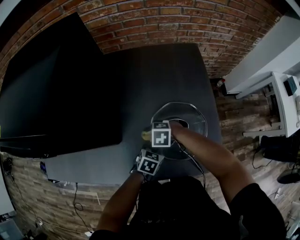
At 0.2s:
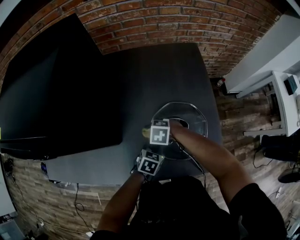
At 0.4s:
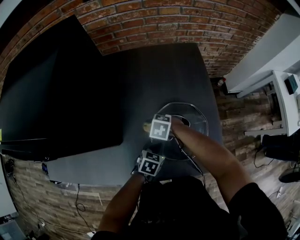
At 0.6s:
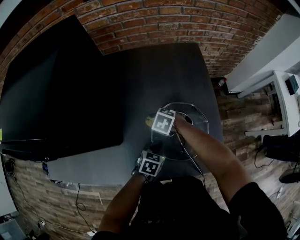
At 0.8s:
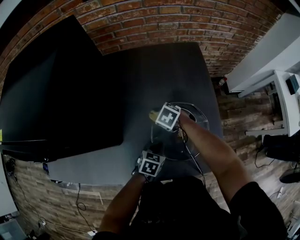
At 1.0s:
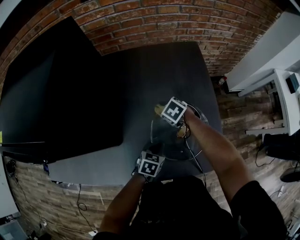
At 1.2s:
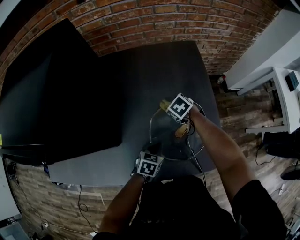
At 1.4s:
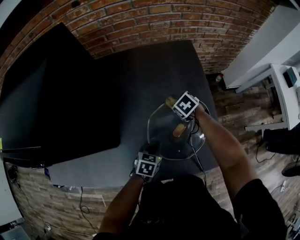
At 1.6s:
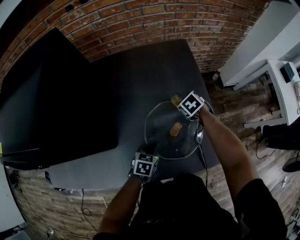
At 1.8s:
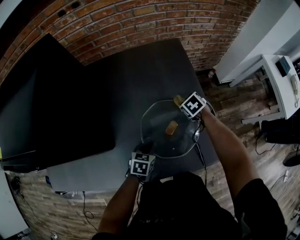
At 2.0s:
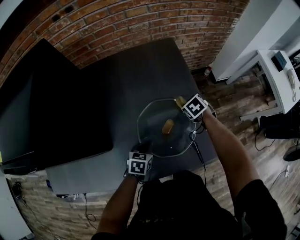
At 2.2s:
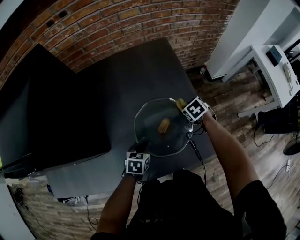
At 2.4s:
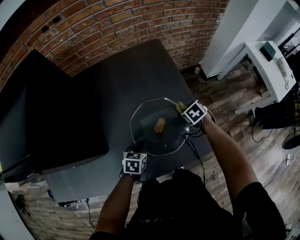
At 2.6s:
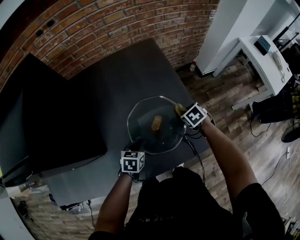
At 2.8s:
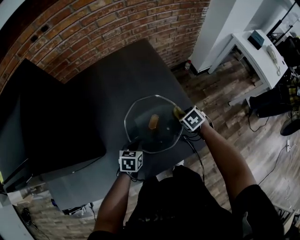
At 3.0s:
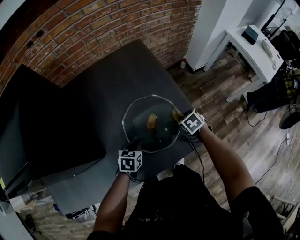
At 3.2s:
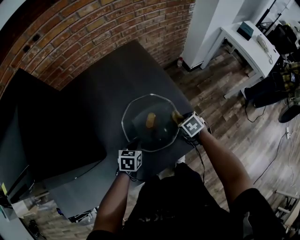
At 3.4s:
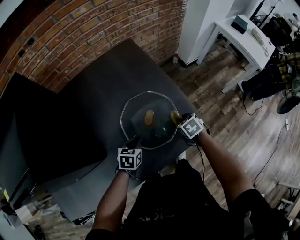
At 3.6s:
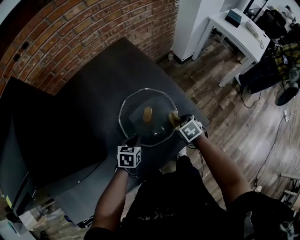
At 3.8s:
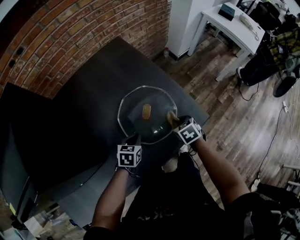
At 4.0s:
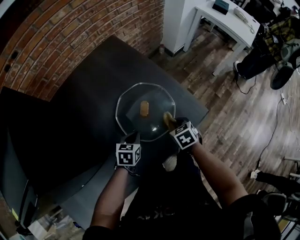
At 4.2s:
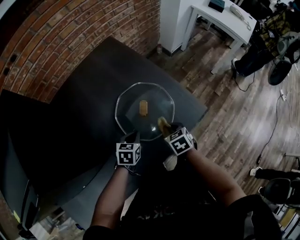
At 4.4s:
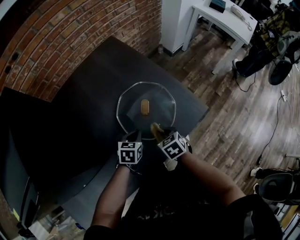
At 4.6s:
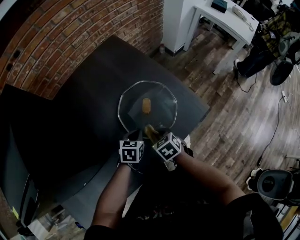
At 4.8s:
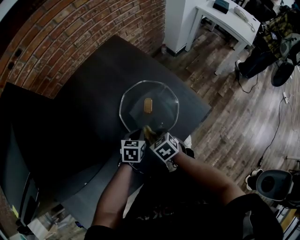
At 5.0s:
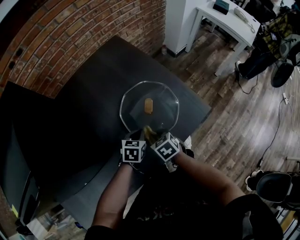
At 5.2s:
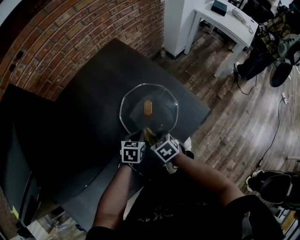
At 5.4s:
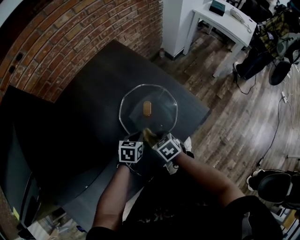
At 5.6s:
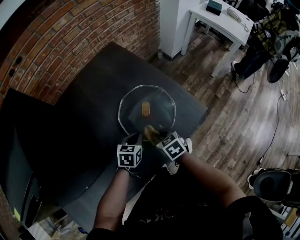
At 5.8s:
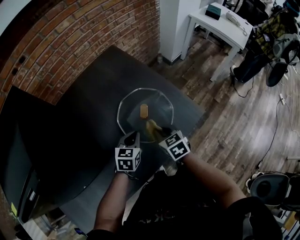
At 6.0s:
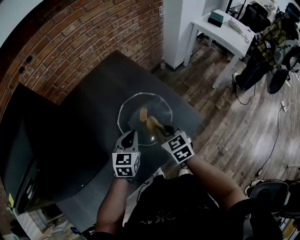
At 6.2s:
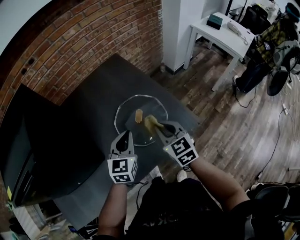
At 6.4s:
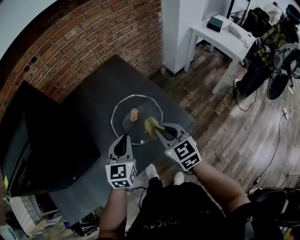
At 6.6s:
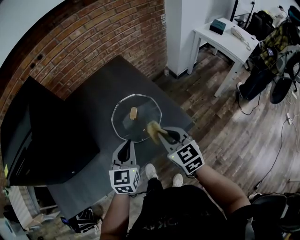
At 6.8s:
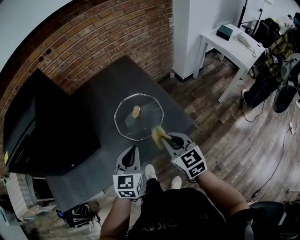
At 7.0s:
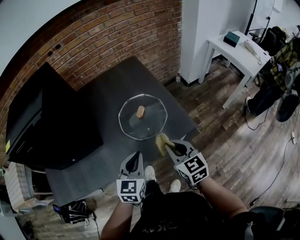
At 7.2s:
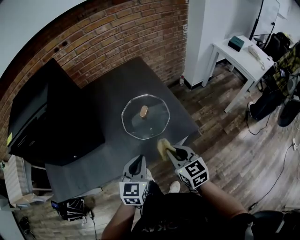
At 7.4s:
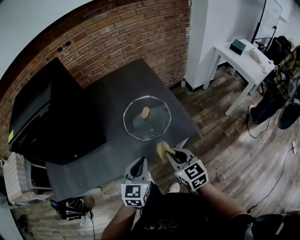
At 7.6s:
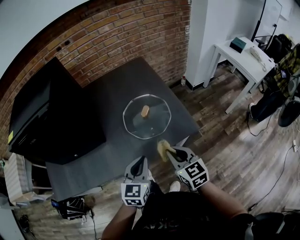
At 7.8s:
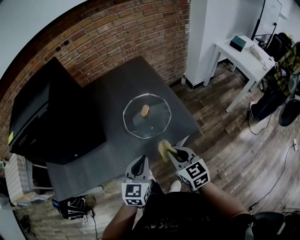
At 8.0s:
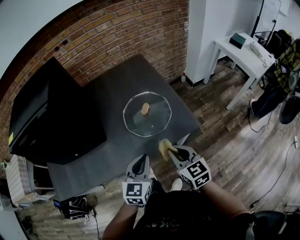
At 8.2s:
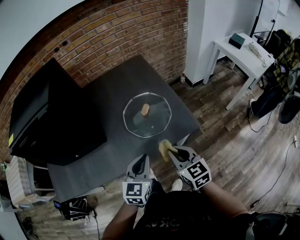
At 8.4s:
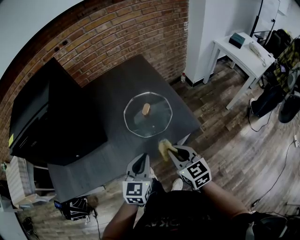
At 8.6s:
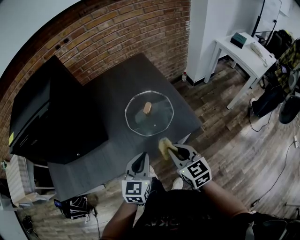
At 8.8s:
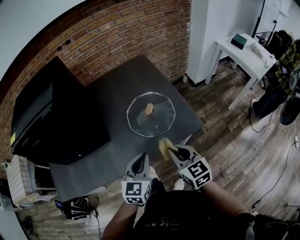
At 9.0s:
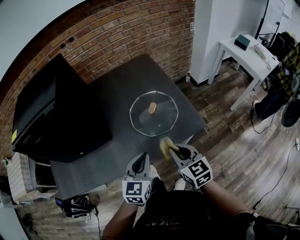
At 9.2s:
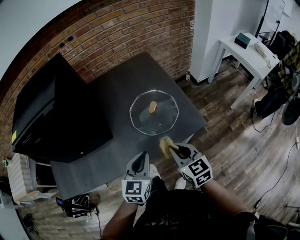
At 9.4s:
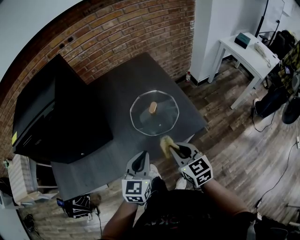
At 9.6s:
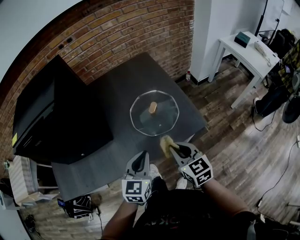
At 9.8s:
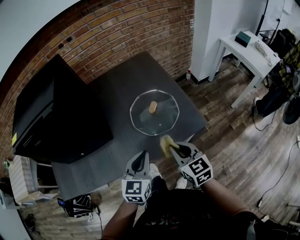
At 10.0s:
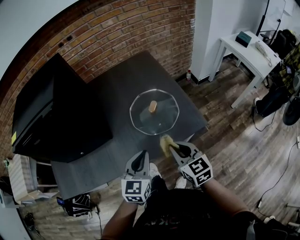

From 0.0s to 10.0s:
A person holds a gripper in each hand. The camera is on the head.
From 0.0s to 1.4s: The right gripper changes place by roughly 20 cm, and rotates around the line of its fingers by roughly 40 degrees, clockwise from behind.
From 1.4s to 2.8s: The right gripper is displaced to the right and backward by roughly 20 cm, and changes its angle by about 20 degrees.
From 2.8s to 4.2s: The right gripper moves backward and to the left, some 15 cm, and swivels approximately 30 degrees.
From 4.2s to 5.8s: The left gripper moves upward, some 5 cm, while the right gripper goes about 10 cm upward and to the left.
From 5.8s to 7.2s: The left gripper travels backward and upward by approximately 25 cm, and changes its angle by approximately 30 degrees. The right gripper shifts approximately 25 cm backward, upward and to the right, and turns by about 20 degrees.
From 7.2s to 10.0s: The grippers move only a little.

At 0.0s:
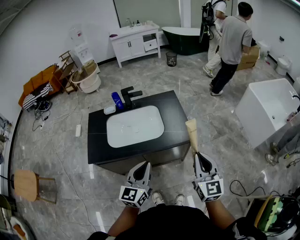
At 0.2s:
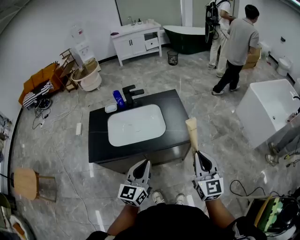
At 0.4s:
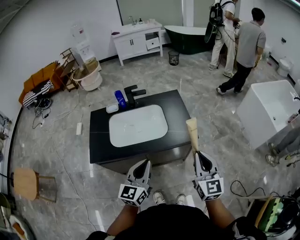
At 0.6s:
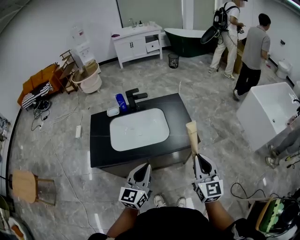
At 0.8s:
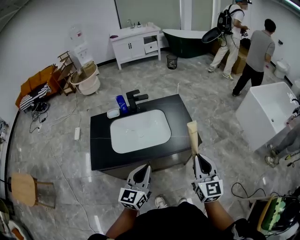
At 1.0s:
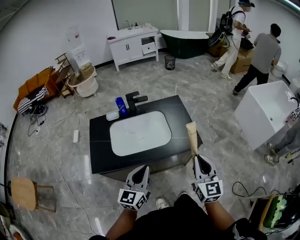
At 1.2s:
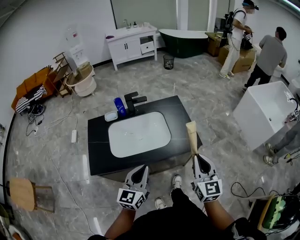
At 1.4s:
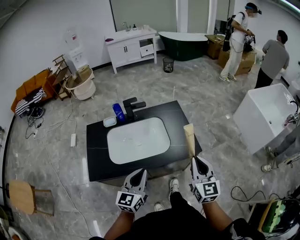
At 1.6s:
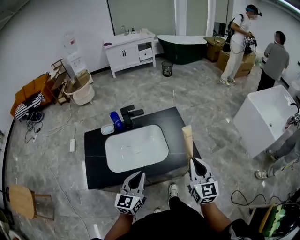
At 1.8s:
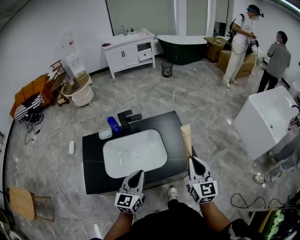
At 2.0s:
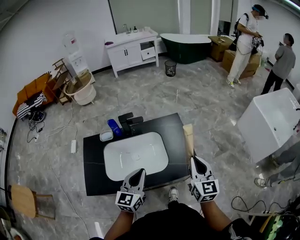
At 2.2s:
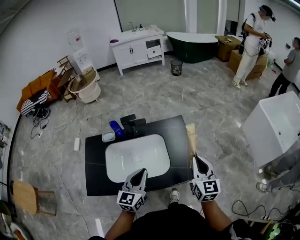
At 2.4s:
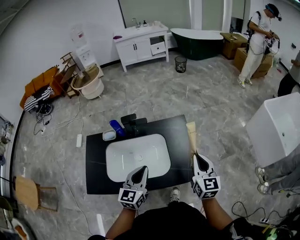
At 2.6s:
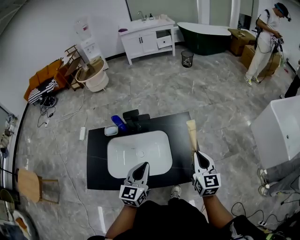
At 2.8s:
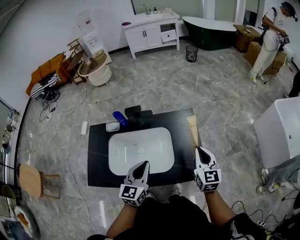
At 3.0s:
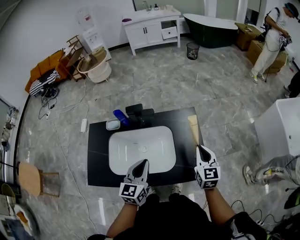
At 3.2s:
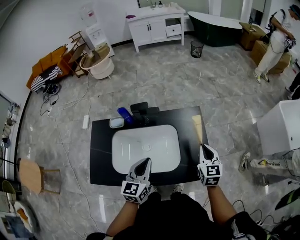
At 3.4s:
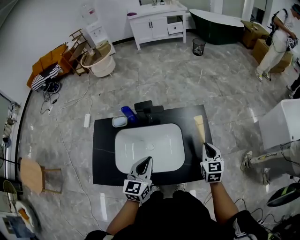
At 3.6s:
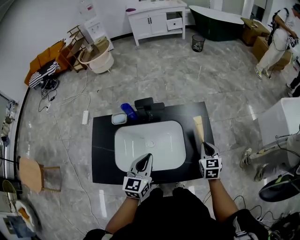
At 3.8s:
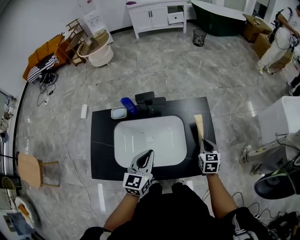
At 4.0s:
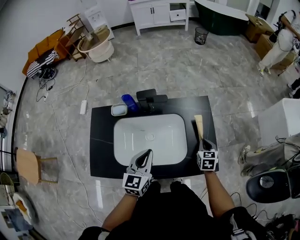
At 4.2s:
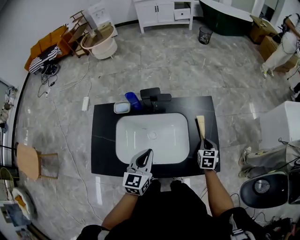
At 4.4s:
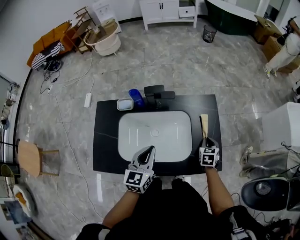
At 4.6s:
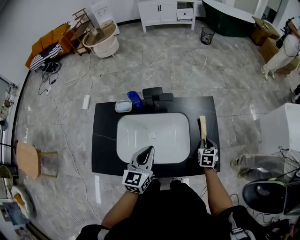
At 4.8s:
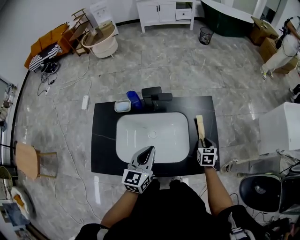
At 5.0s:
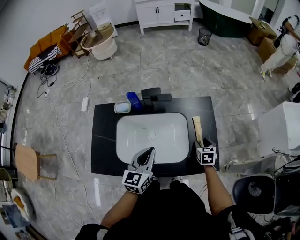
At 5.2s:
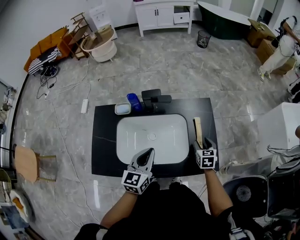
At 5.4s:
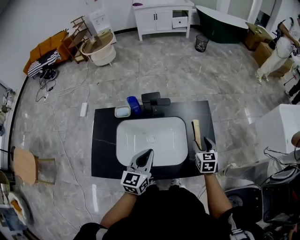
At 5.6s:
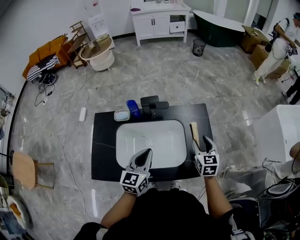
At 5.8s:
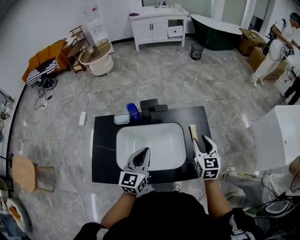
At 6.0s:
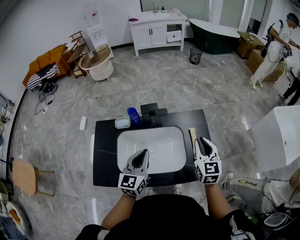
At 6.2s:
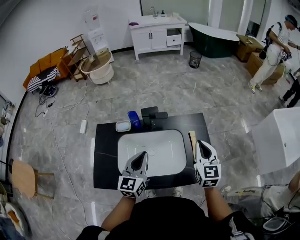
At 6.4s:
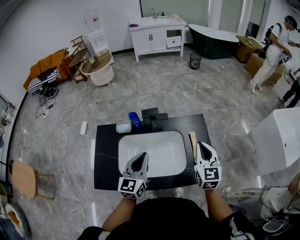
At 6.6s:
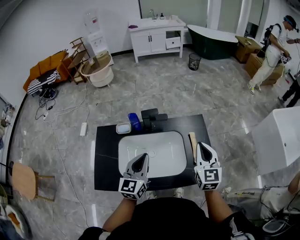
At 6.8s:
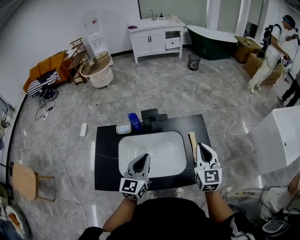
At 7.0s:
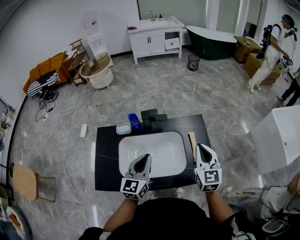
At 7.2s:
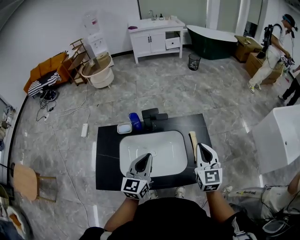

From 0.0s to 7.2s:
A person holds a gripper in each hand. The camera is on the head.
From 0.0s to 1.4s: The left gripper is displaced to the left and forward by about 10 cm. Meanwhile the right gripper moves forward and to the left, roughly 10 cm.
From 1.4s to 2.8s: Both grippers move forward, approximately 20 cm.
From 2.8s to 4.4s: The left gripper moves to the left and downward, some 10 cm. The right gripper shifts approximately 20 cm downward, and angles its fingers downward, by roughly 30 degrees.
From 4.4s to 5.8s: The right gripper goes roughly 20 cm upward, rotates approximately 30 degrees, and opens. The left gripper shifts roughly 5 cm upward.
From 5.8s to 7.2s: The right gripper heads upward, covering about 10 cm, and closes up.

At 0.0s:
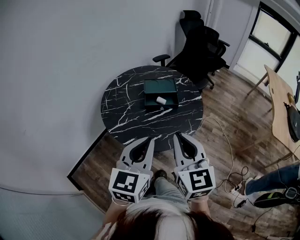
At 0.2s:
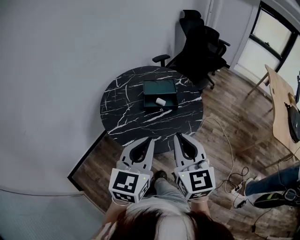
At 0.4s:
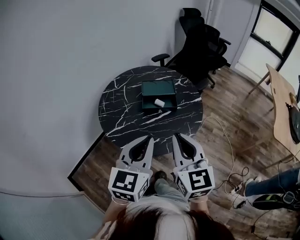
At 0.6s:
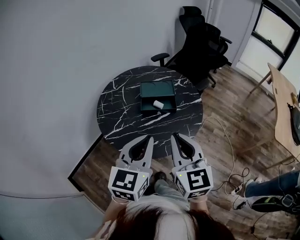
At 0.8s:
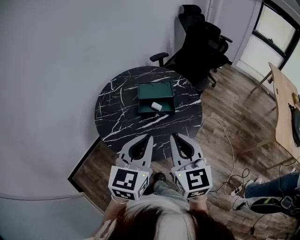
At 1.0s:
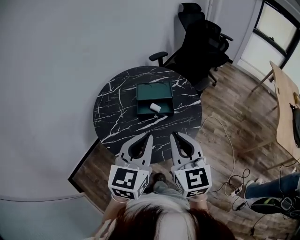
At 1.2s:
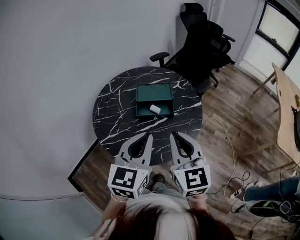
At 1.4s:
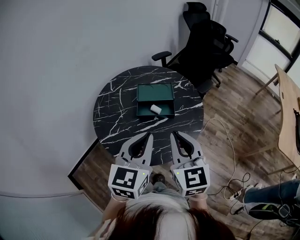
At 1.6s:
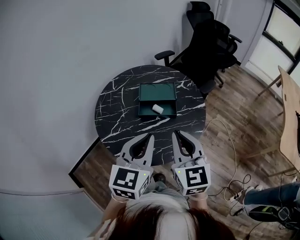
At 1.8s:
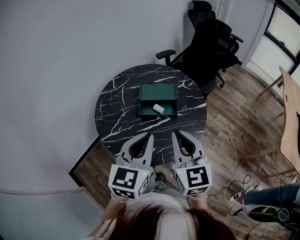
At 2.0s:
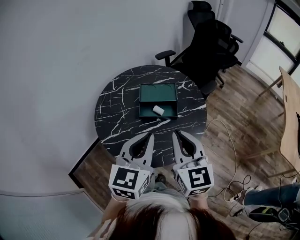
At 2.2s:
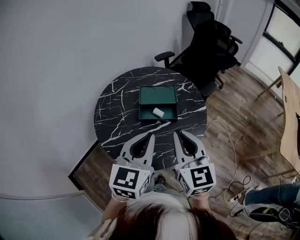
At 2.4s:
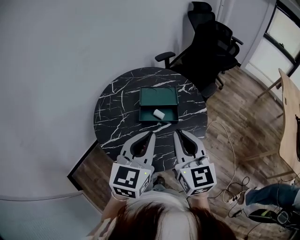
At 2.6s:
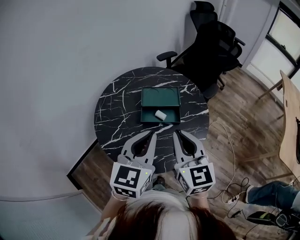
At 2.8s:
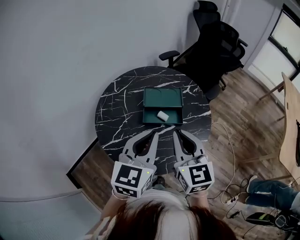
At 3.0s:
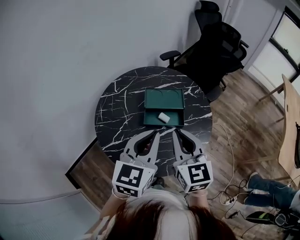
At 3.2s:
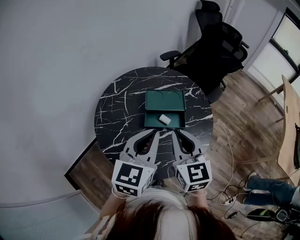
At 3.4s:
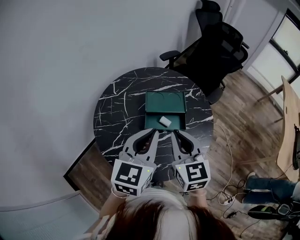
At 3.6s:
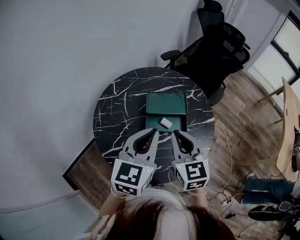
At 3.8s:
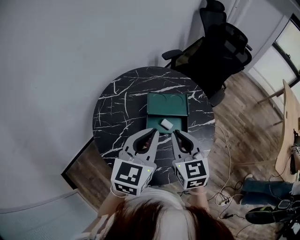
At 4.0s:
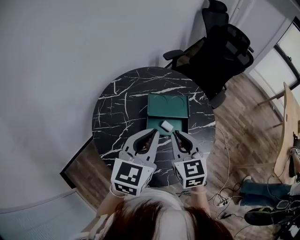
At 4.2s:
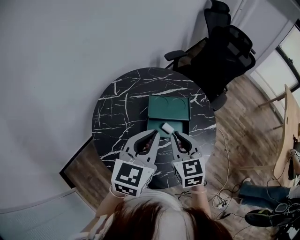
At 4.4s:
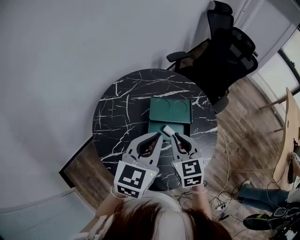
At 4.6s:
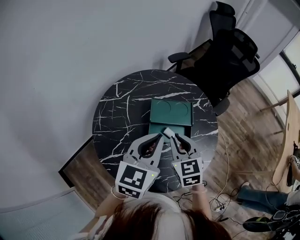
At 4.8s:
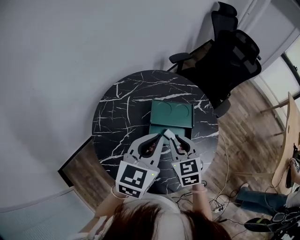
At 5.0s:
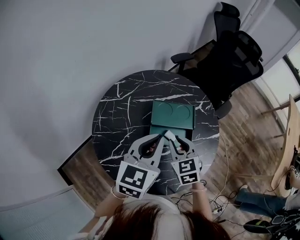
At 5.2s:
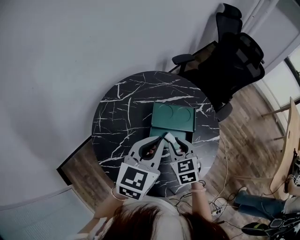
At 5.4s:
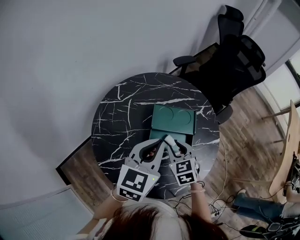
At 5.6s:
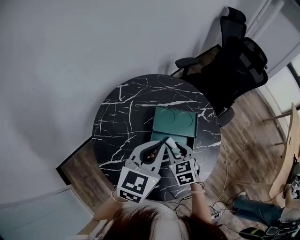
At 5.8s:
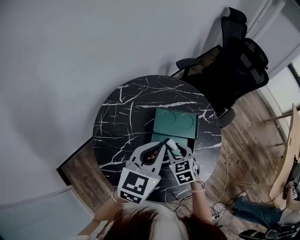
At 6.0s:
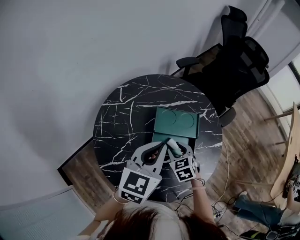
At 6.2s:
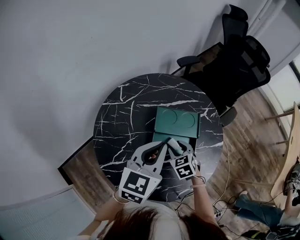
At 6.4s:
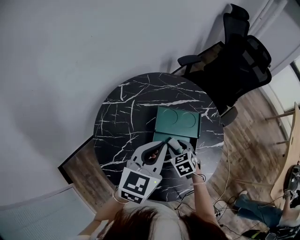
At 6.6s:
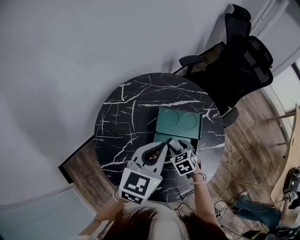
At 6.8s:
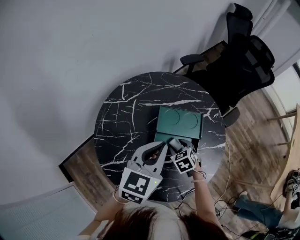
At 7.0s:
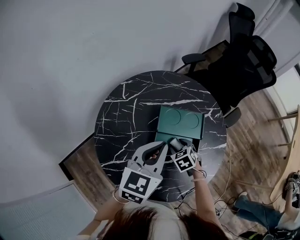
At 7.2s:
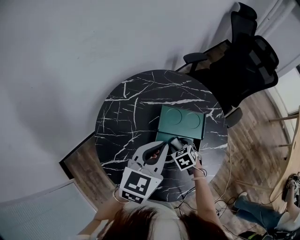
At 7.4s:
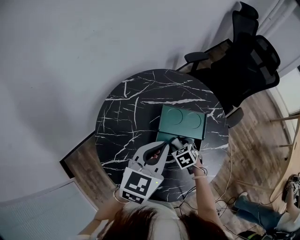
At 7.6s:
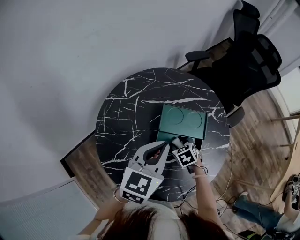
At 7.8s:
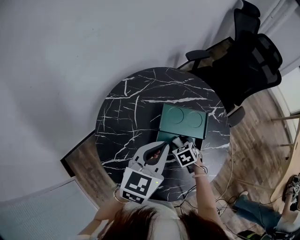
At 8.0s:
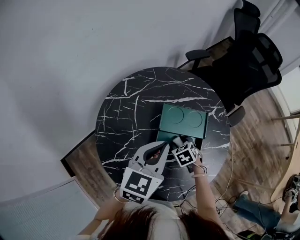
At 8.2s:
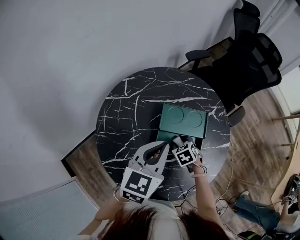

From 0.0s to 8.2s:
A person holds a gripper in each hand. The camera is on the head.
From 0.0s to 1.6s: The grippers both shift forward and to the right by about 15 cm.
From 1.6s to 3.2s: The two grippers go roughly 15 cm forward and to the left.
From 3.2s to 5.0s: The right gripper moves downward and forward, roughly 20 cm, and rotates roughly 30 degrees. The left gripper travels forward by approximately 10 cm.
From 5.0s to 6.6s: The right gripper shifts about 15 cm downward, rotates approximately 20 degrees, and opens up.
From 6.6s to 8.2s: There are only small adjustments of the grippers.
